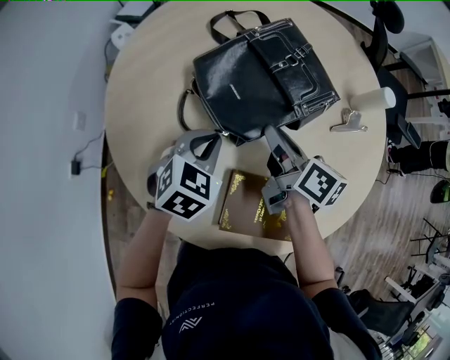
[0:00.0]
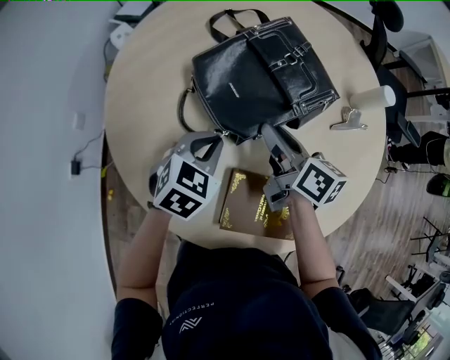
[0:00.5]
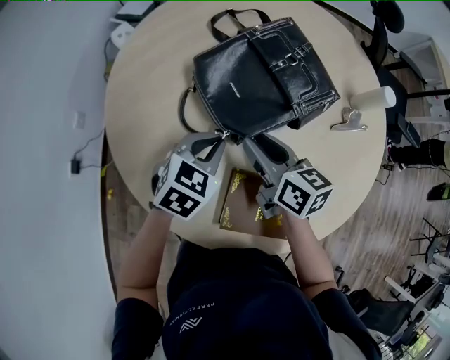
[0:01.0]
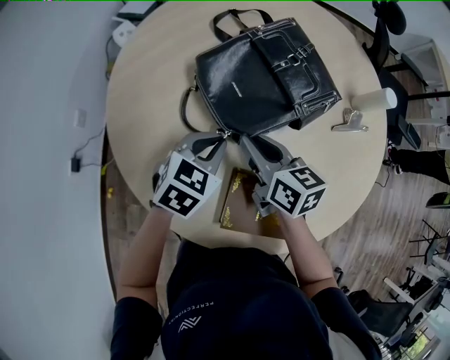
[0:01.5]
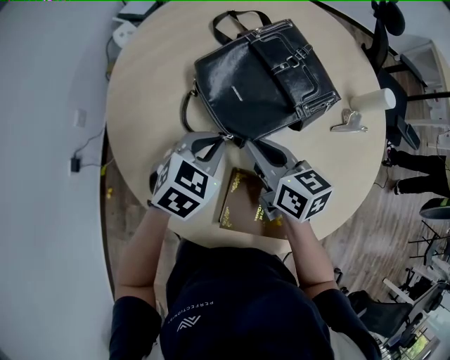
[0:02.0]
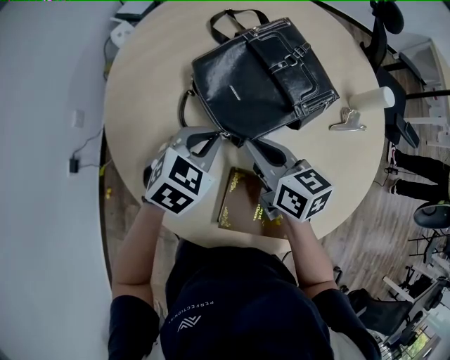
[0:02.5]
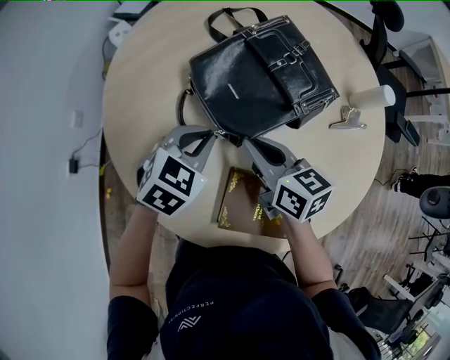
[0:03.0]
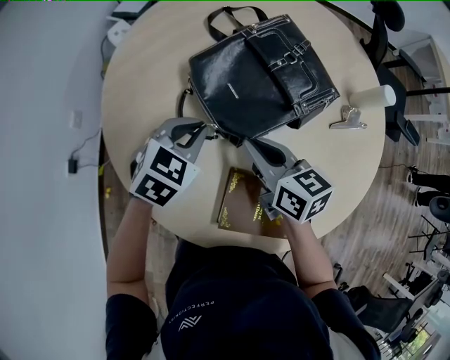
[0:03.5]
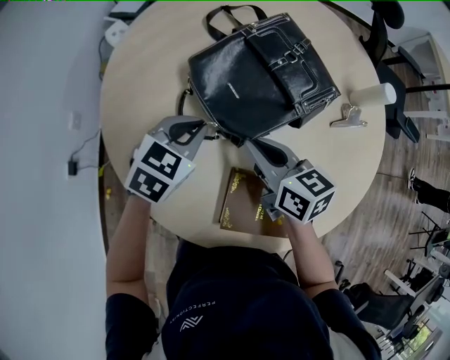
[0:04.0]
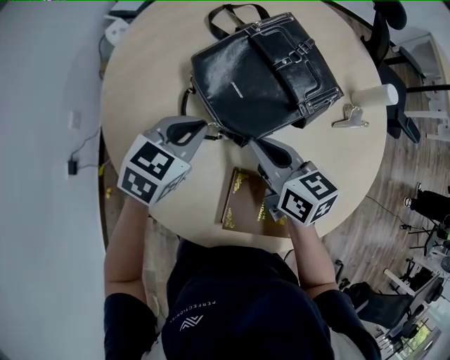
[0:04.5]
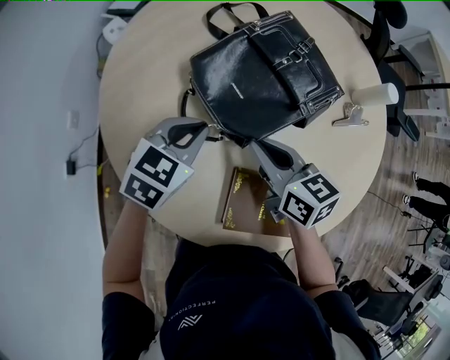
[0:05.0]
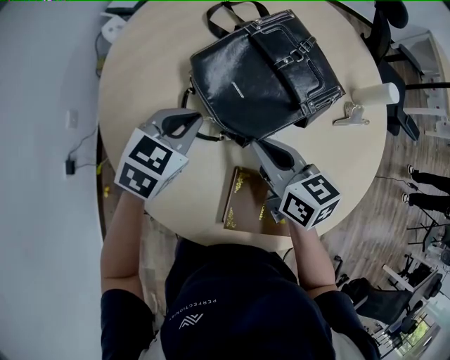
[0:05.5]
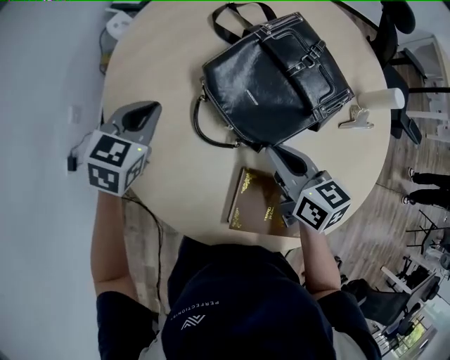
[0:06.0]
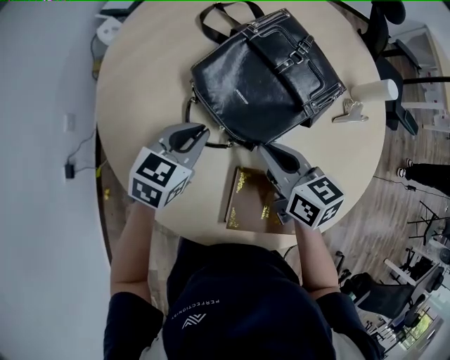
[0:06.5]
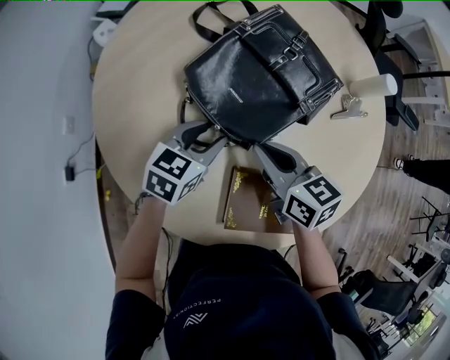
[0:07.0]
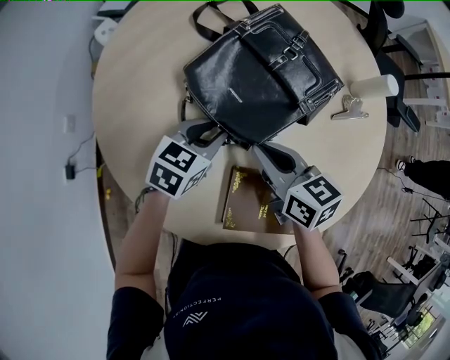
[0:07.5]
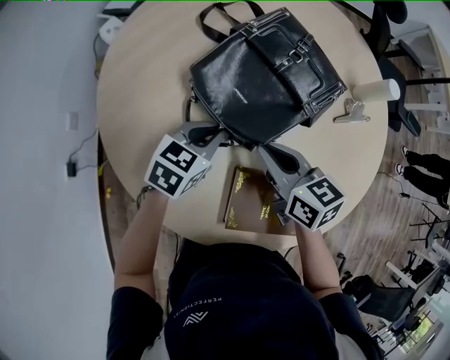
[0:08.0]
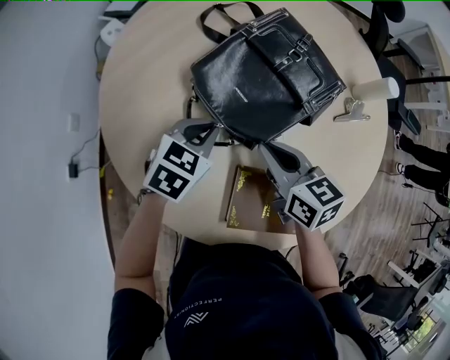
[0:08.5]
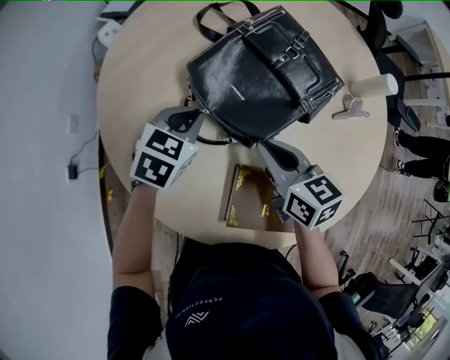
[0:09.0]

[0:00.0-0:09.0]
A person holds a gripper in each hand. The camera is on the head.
0:00.0 to 0:02.0: The right gripper heads to the left, covering about 5 cm, changes its angle by about 30 degrees, and opens and closes again.
0:02.0 to 0:04.5: The grippers stay close to where they were, moving slightly.
0:04.5 to 0:07.0: The left gripper goes to the left and returns, approximately 10 cm each way, and opens its fingers.
0:07.0 to 0:09.0: The left gripper changes place by some 5 cm, and closes.

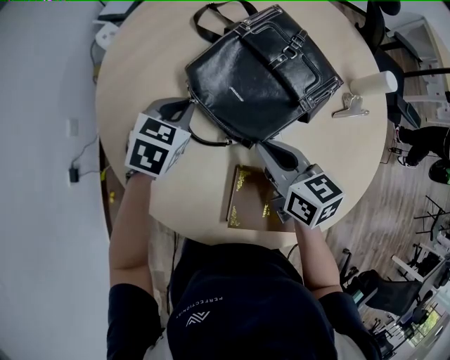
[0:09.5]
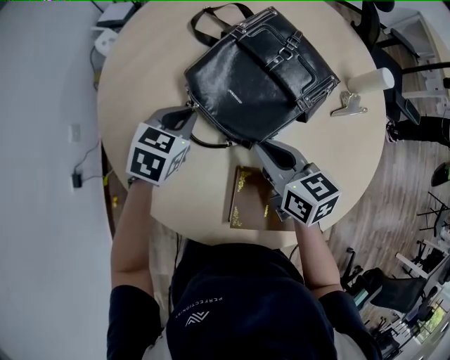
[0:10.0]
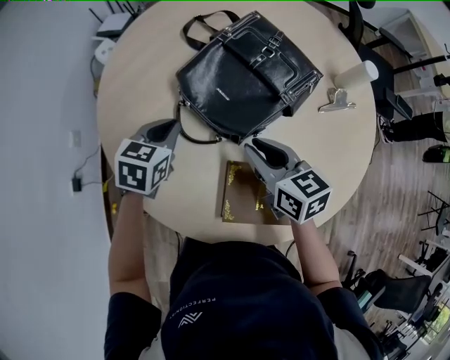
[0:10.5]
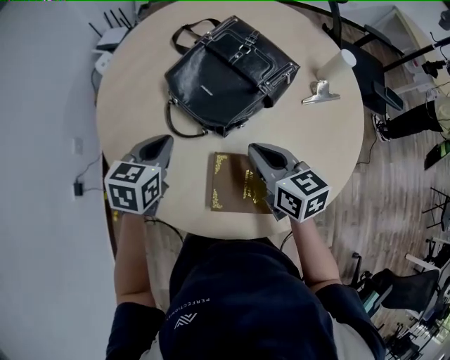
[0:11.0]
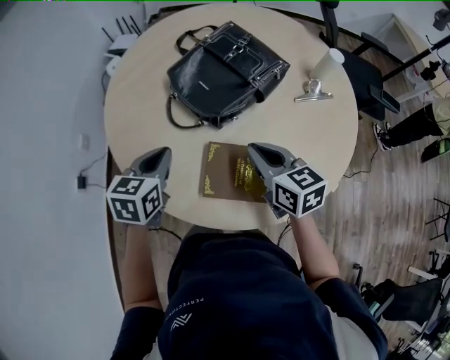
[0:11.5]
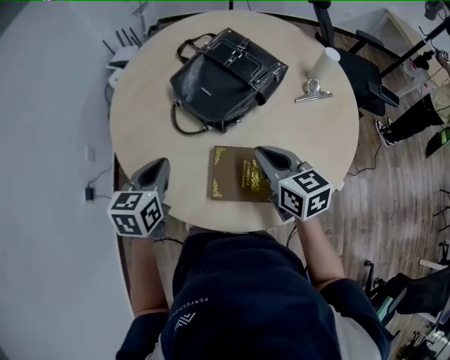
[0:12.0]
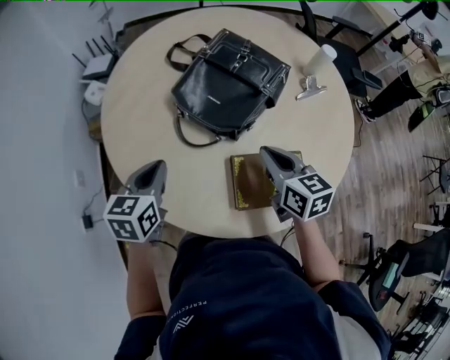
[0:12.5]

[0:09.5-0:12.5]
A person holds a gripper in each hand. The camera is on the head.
0:09.5 to 0:11.0: The left gripper heads backward, covering some 10 cm. The right gripper heads backward, covering about 5 cm.
0:11.0 to 0:12.5: The left gripper shifts some 10 cm to the left, and moves roughly 10 cm backward and comes back.

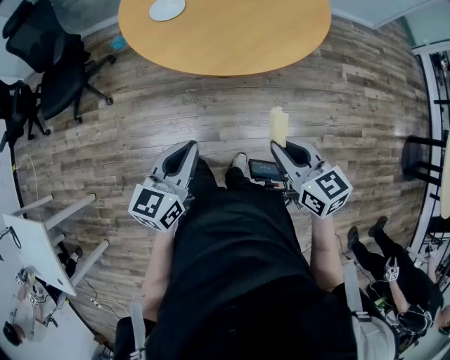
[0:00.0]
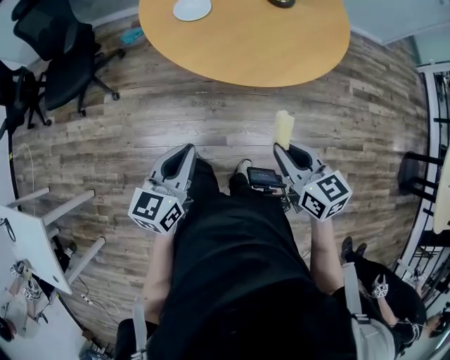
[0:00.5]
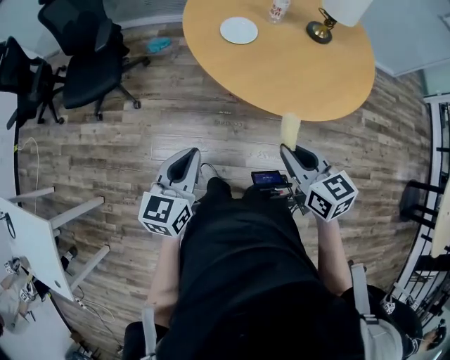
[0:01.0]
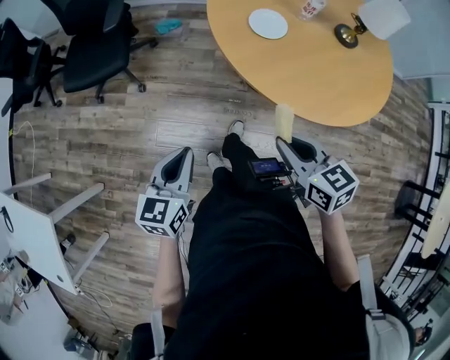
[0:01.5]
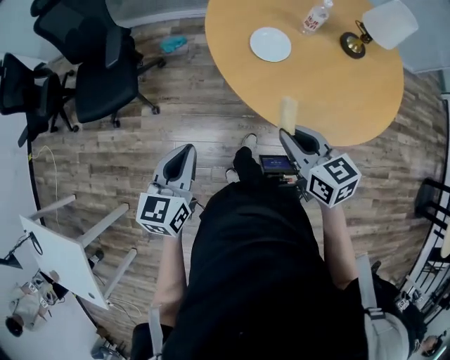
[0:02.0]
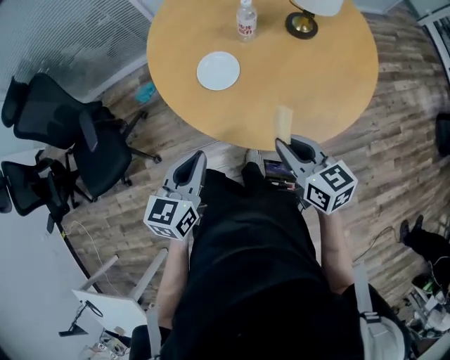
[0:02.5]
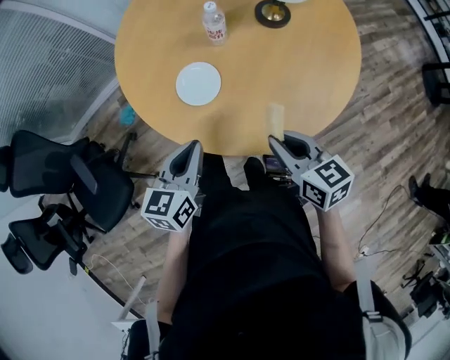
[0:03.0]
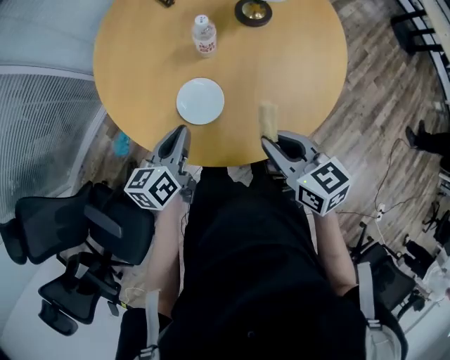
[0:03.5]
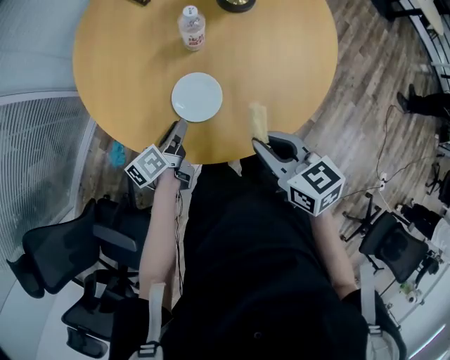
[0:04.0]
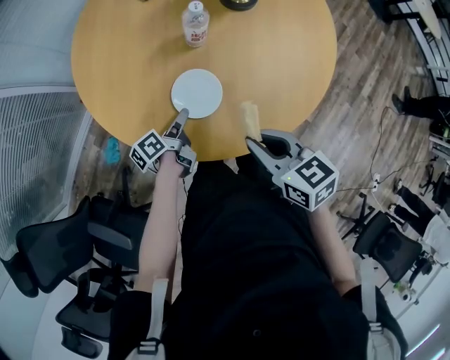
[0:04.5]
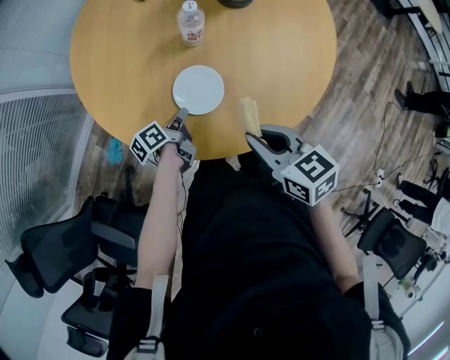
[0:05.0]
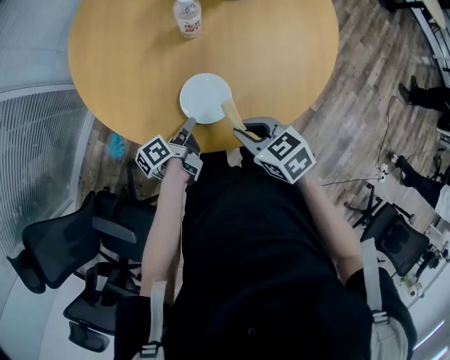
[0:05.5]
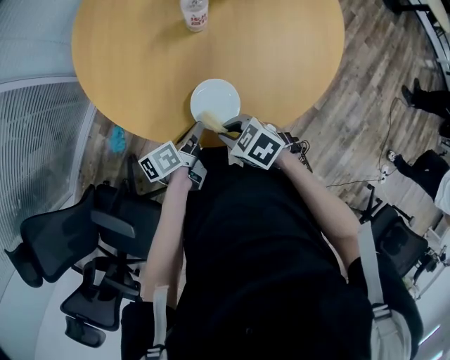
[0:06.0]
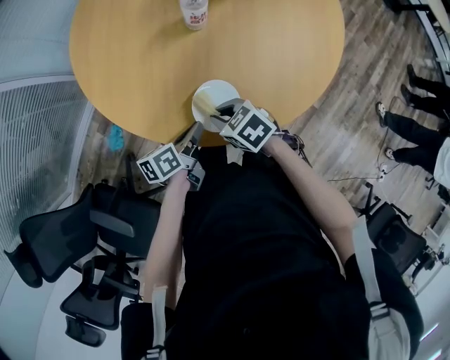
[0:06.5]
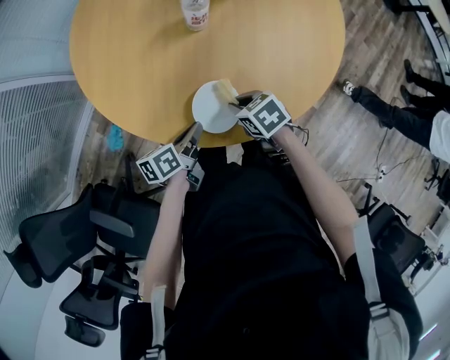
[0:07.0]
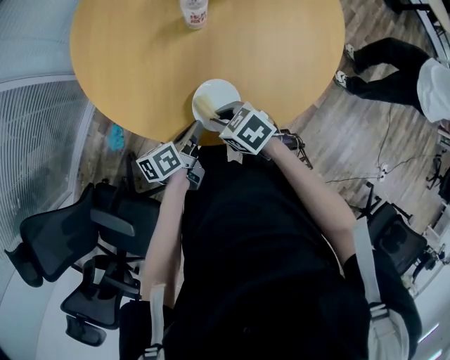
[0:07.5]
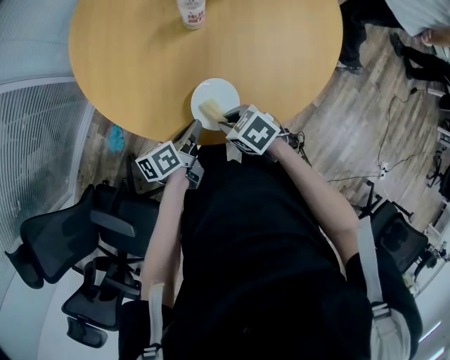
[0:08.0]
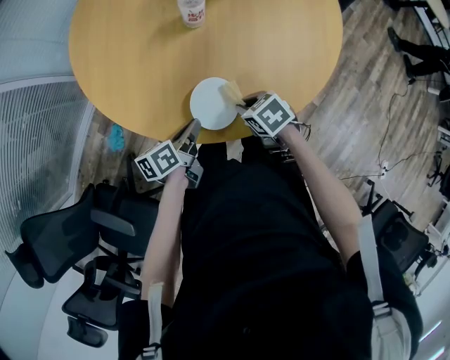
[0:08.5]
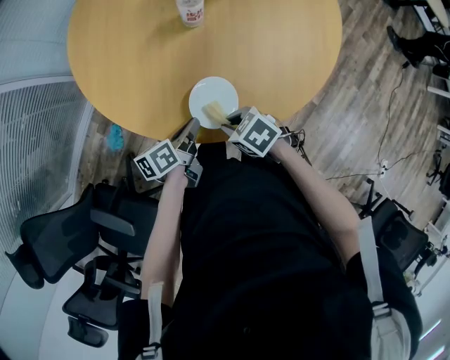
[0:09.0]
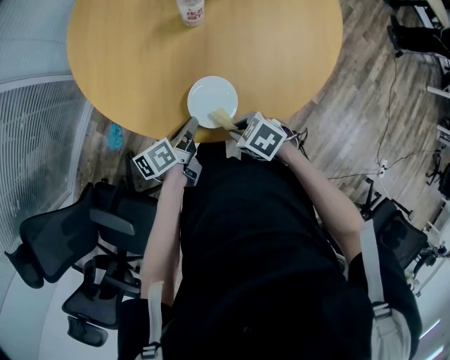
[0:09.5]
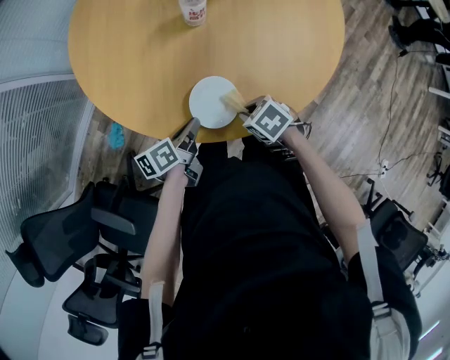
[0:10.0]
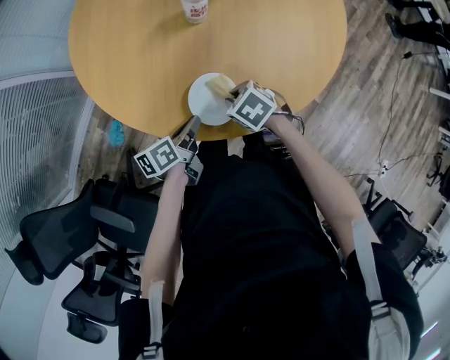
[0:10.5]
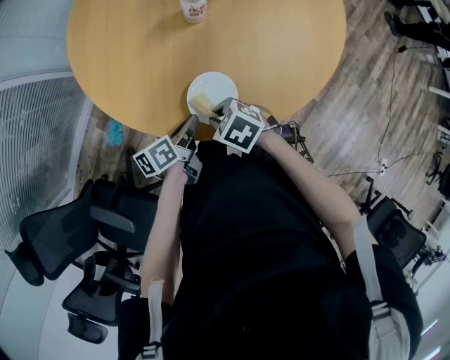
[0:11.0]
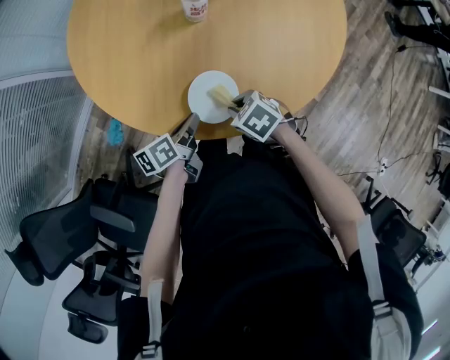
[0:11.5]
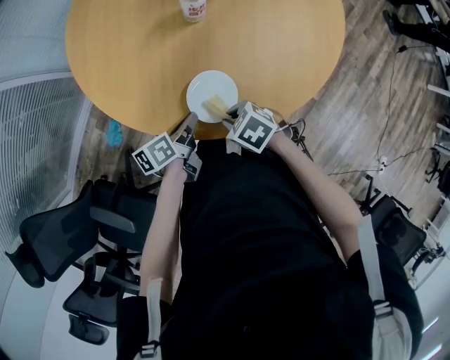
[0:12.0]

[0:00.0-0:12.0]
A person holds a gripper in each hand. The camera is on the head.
0:00.0 to 0:02.0: The two grippers travel together, forward and to the left, about 40 cm.
0:02.0 to 0:04.0: The left gripper shifts by approximately 50 cm, rotates roughly 60 degrees, and opens. The right gripper ends up some 20 cm from where it was, and rotates some 50 degrees.
0:04.0 to 0:06.0: The right gripper goes some 15 cm downward, and rotates roughly 40 degrees; the left gripper shifts by about 10 cm, and closes.
0:08.0 to 0:10.0: The right gripper shifts by about 5 cm.

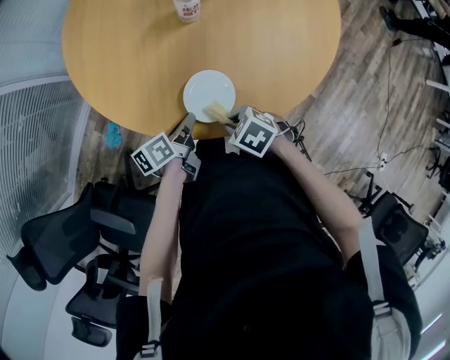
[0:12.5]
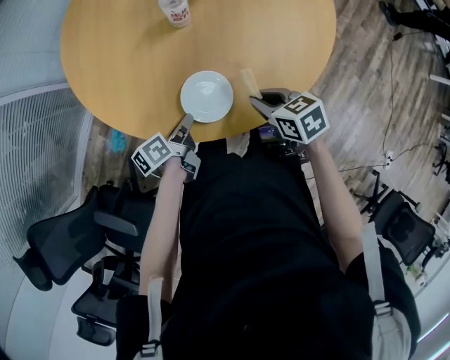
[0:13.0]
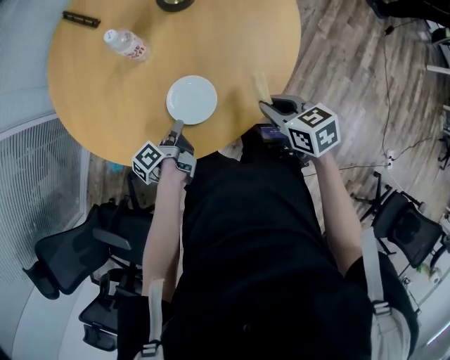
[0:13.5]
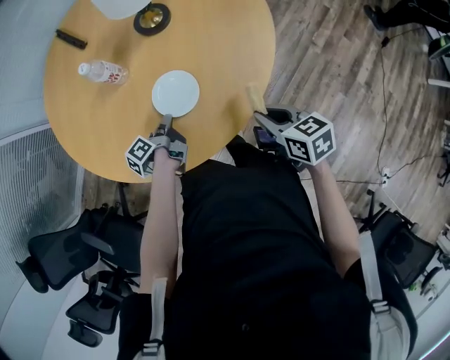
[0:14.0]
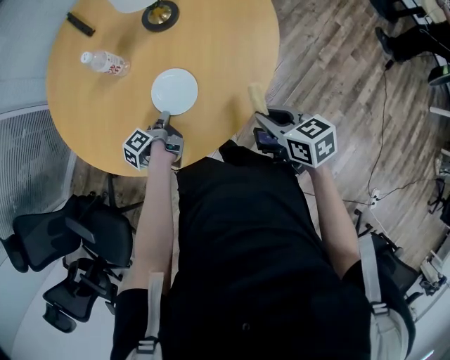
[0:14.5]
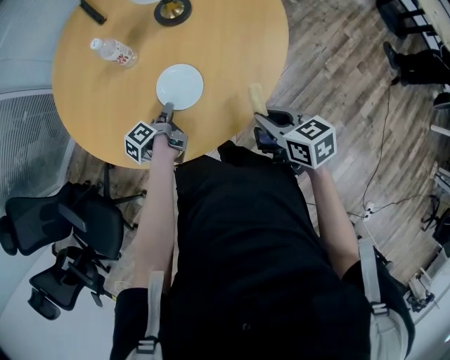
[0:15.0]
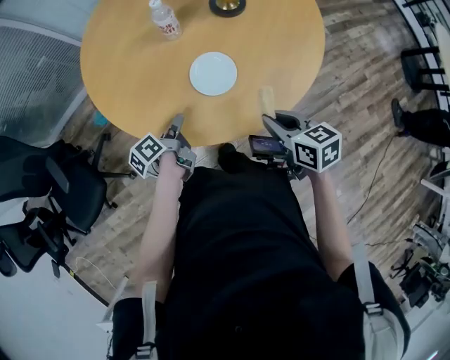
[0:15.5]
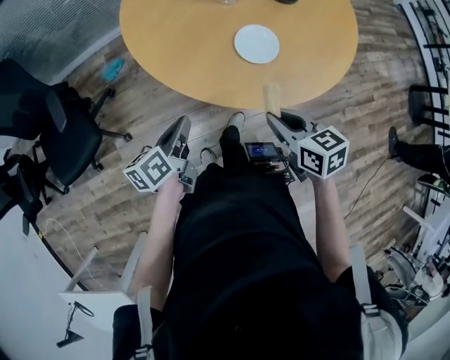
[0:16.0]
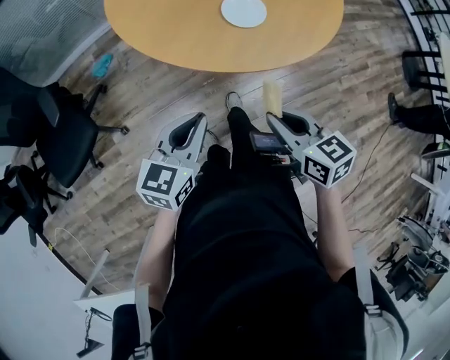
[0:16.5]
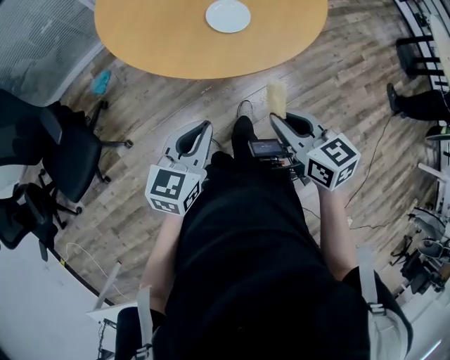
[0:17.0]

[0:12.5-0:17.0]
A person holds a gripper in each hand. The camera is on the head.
0:12.5 to 0:14.5: The right gripper ends up about 40 cm from where it was, and rotates approximately 40 degrees, while the left gripper moves approximately 20 cm, and swivels about 40 degrees.
0:14.5 to 0:17.0: The right gripper travels backward, to the left and upward by roughly 25 cm; the left gripper heads backward and upward, covering some 40 cm, rotates around the line of its fingers by roughly 70 degrees, clockwise from behind, and opens, then closes once more.
